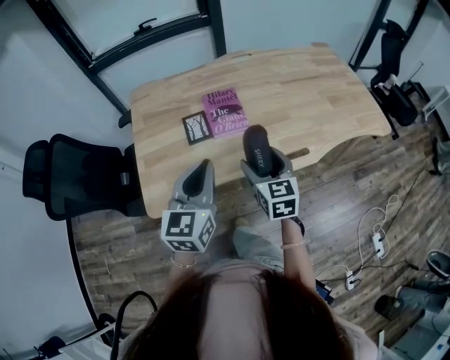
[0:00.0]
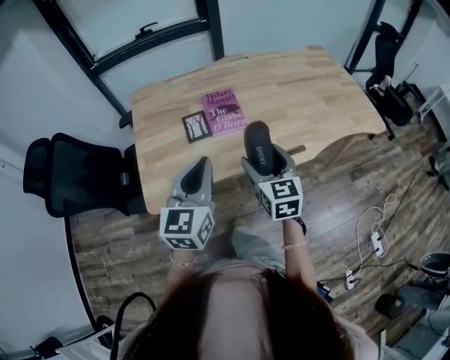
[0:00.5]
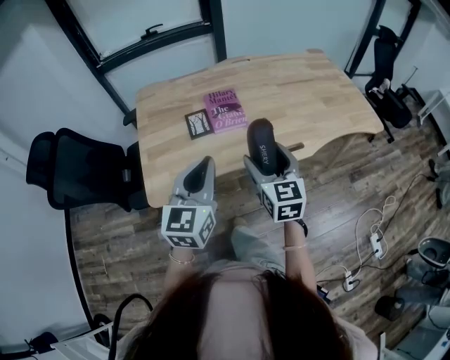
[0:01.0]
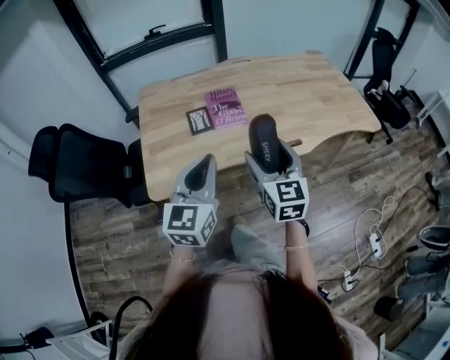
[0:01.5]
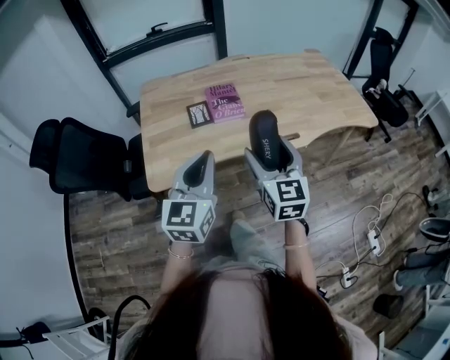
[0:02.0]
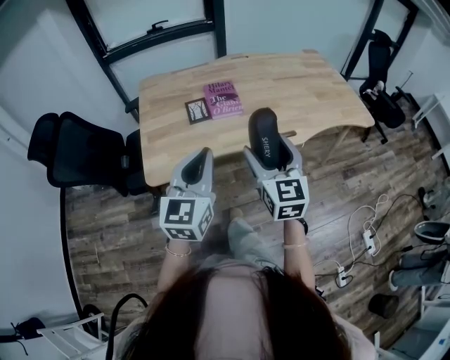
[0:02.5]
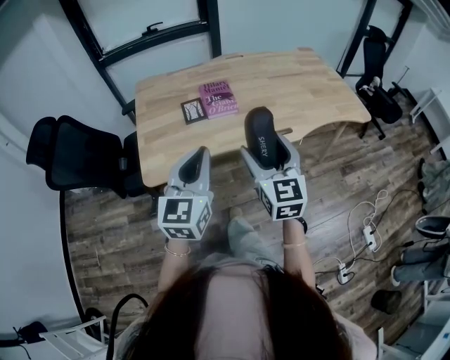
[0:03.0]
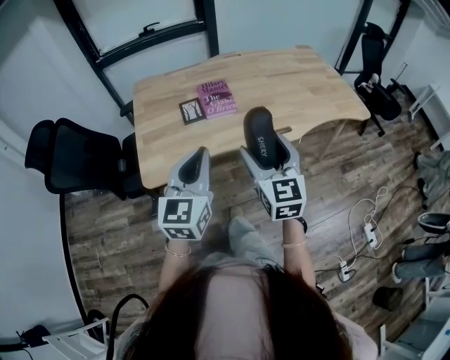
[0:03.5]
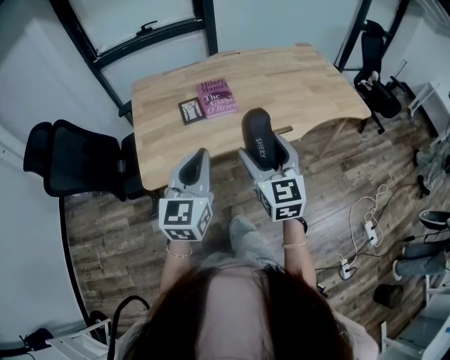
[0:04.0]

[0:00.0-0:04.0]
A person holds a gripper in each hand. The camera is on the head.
0:00.0 to 0:02.0: The right gripper travels backward and upward by roughly 20 cm. Meanwhile the left gripper heads backward, covering approximately 15 cm.
0:02.0 to 0:04.0: The grippers stay close to where they were, moving slightly.

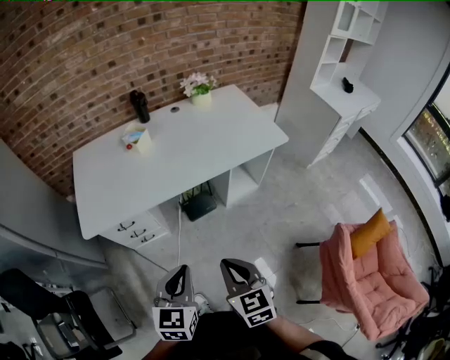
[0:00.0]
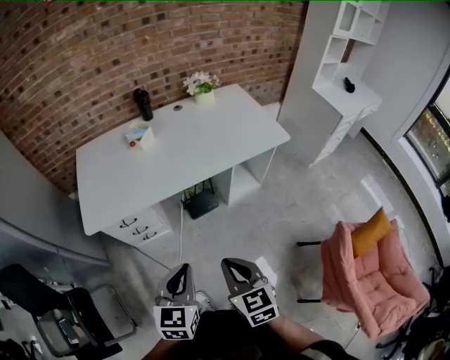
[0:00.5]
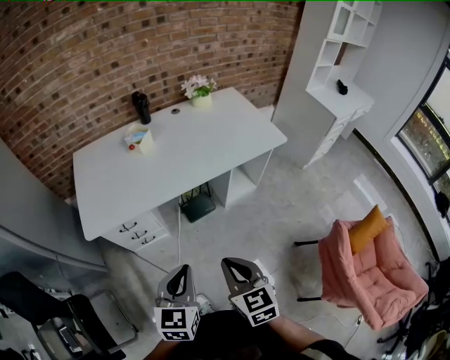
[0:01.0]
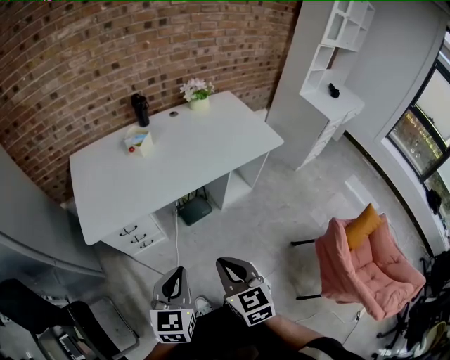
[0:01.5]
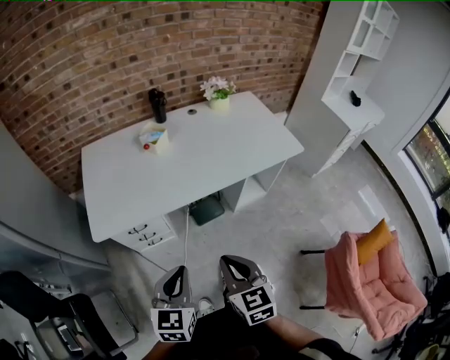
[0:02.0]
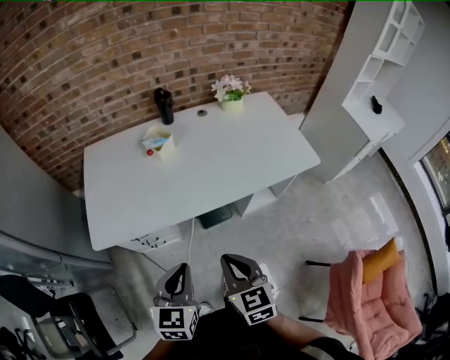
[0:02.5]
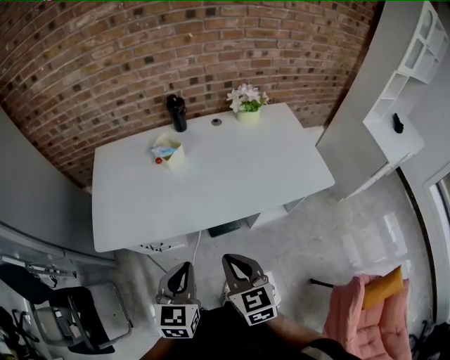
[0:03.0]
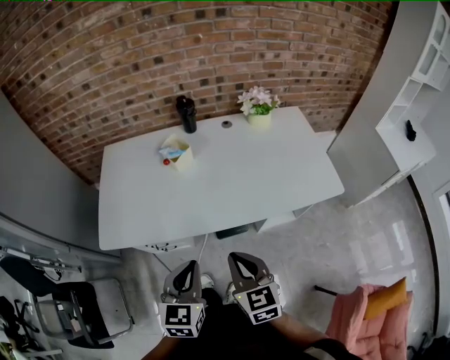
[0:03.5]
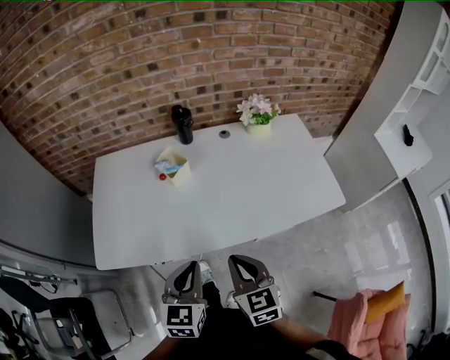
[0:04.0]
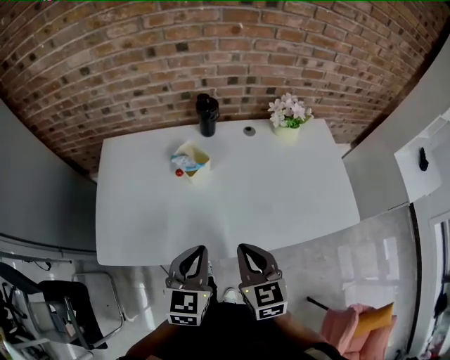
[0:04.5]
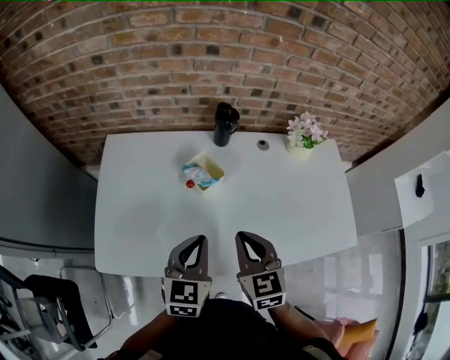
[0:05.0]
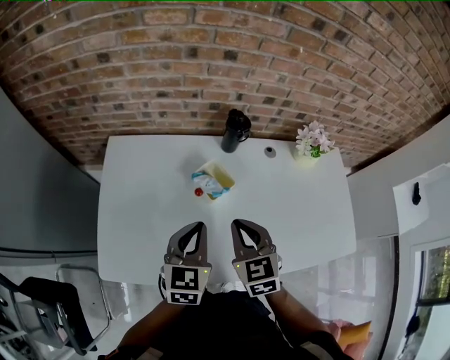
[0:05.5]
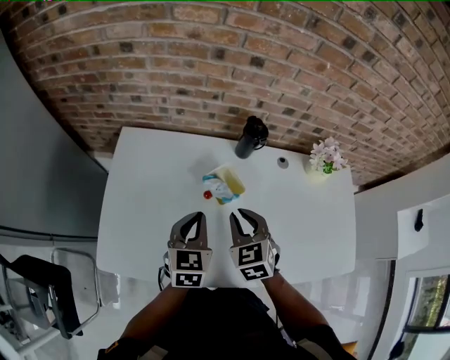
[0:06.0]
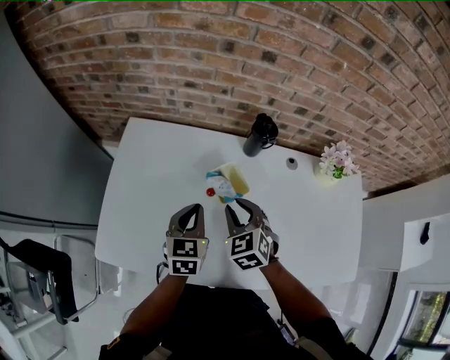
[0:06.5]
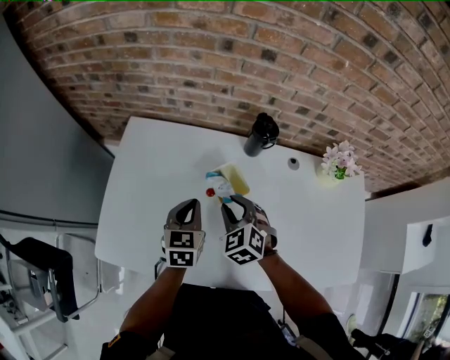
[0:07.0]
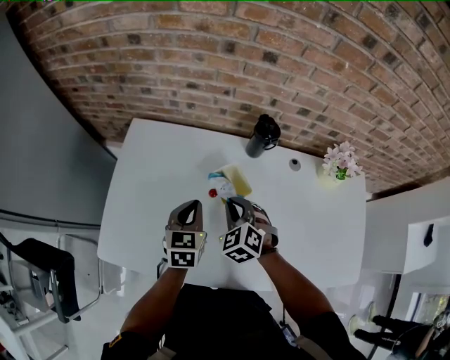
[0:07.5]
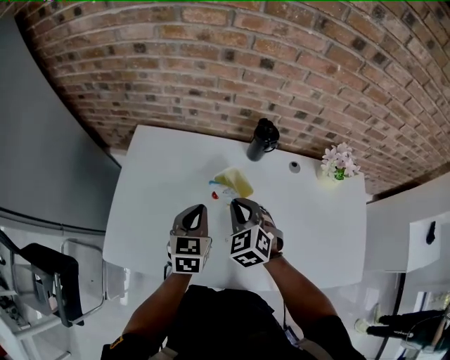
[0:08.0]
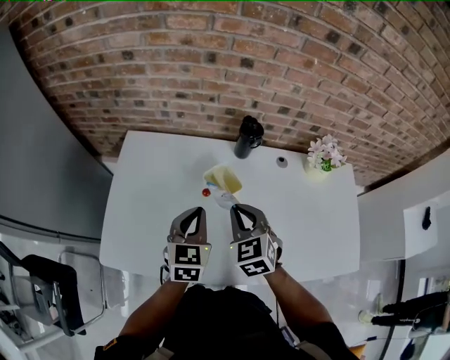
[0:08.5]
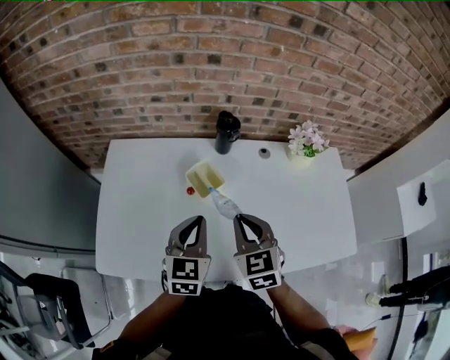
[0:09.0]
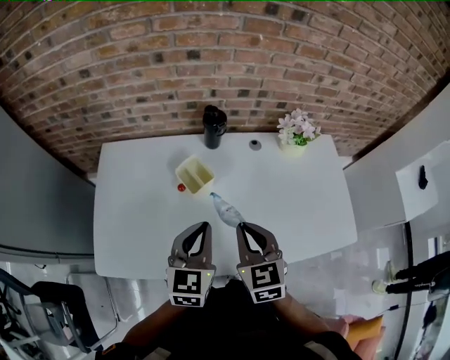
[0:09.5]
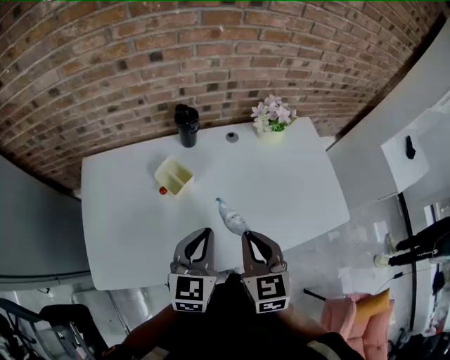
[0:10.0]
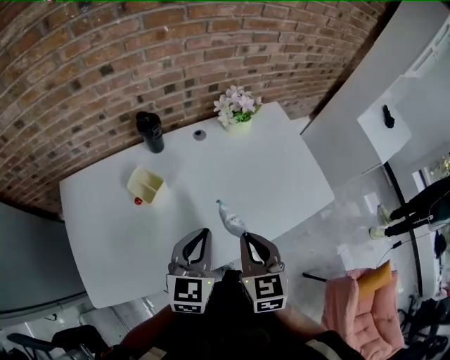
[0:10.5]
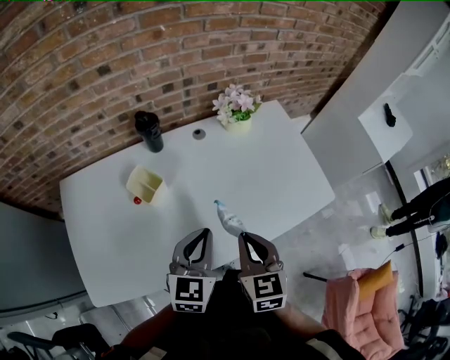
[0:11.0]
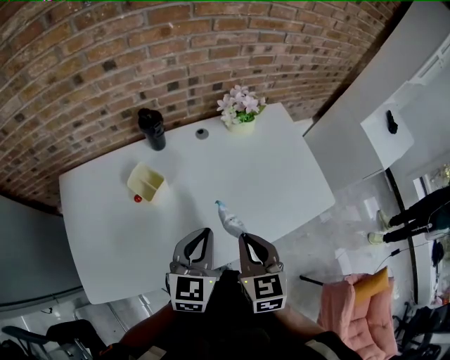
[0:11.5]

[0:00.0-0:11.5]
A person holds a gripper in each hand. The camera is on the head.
0:00.0 to 0:02.0: Both grippers move to the left, about 10 cm.
0:02.0 to 0:04.0: The two grippers go some 25 cm forward.
0:04.0 to 0:06.0: The two grippers go some 30 cm forward and to the left. The right gripper rotates some 30 degrees.
0:06.0 to 0:07.5: The two grippers go about 5 cm downward. The right gripper swivels roughly 20 degrees.
0:07.5 to 0:09.5: The left gripper is displaced upward, to the right and backward by roughly 20 cm, and turns by some 20 degrees. Meanwhile the right gripper shifts about 20 cm upward, backward and to the right, and rotates roughly 40 degrees.
0:09.5 to 0:11.5: The grippers both shift to the right by some 10 cm. The right gripper turns by approximately 20 degrees.

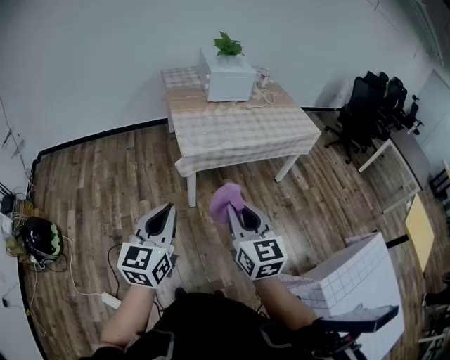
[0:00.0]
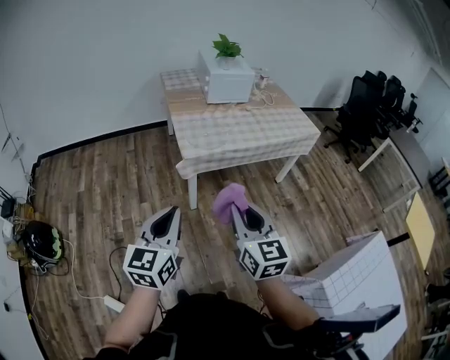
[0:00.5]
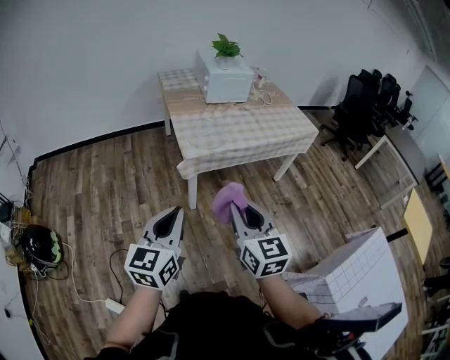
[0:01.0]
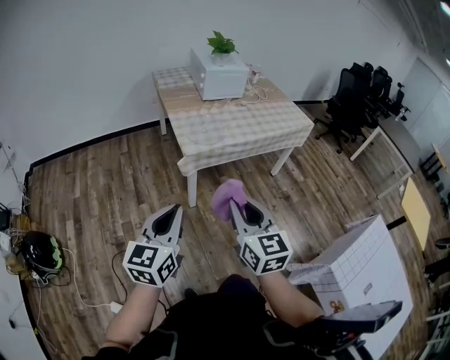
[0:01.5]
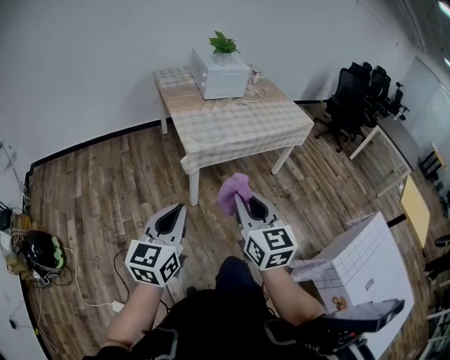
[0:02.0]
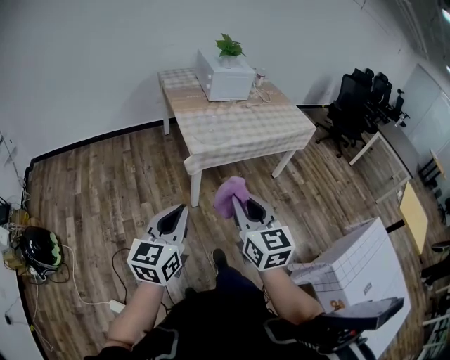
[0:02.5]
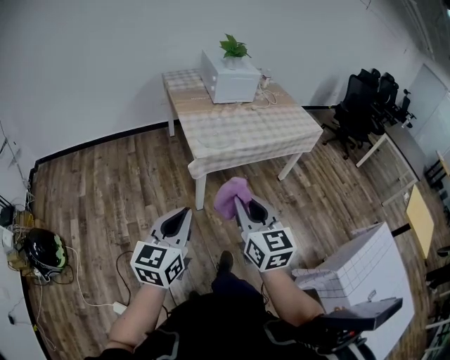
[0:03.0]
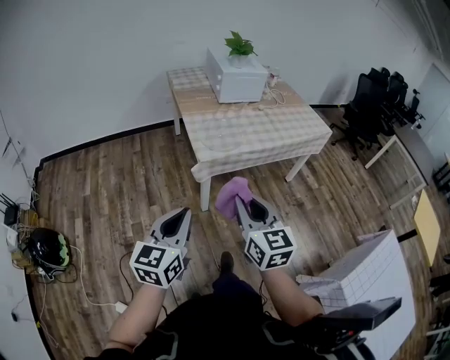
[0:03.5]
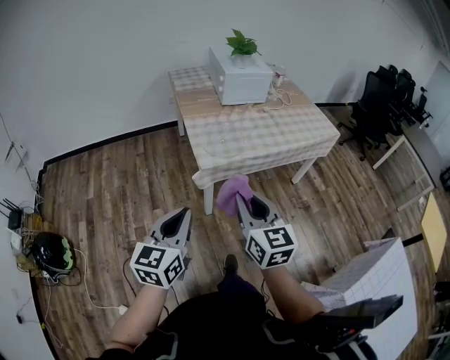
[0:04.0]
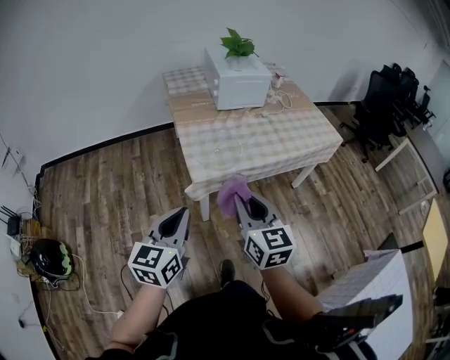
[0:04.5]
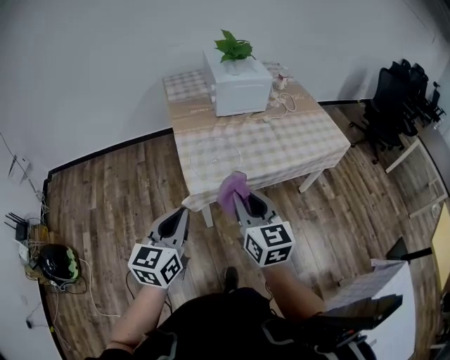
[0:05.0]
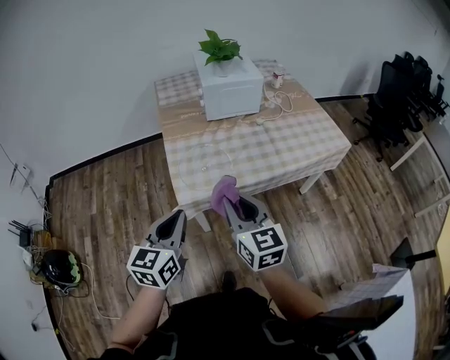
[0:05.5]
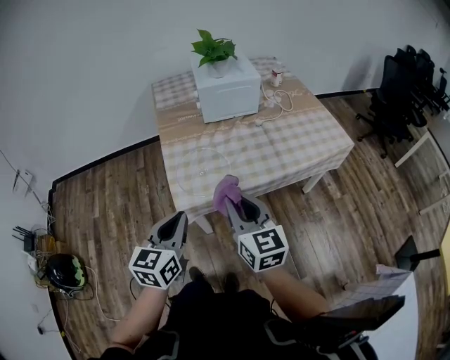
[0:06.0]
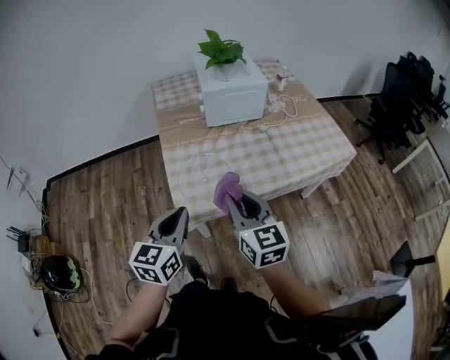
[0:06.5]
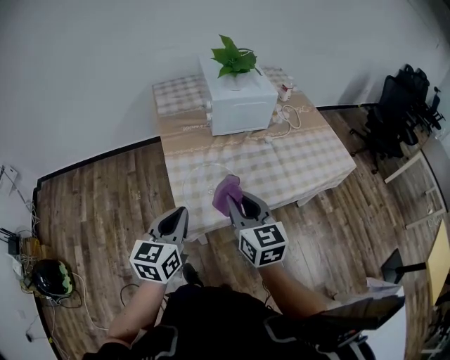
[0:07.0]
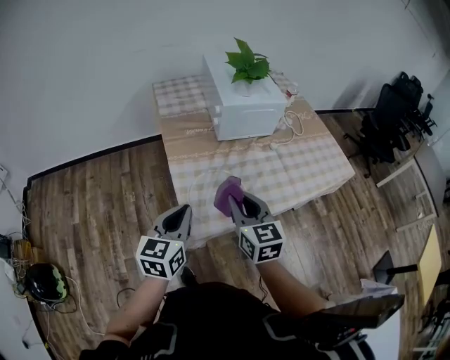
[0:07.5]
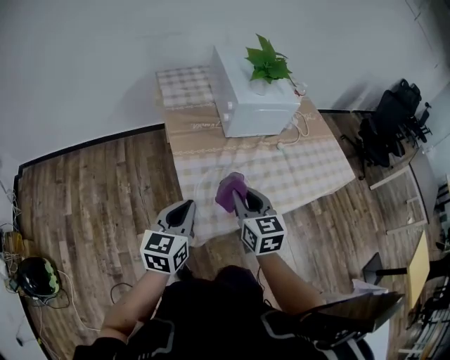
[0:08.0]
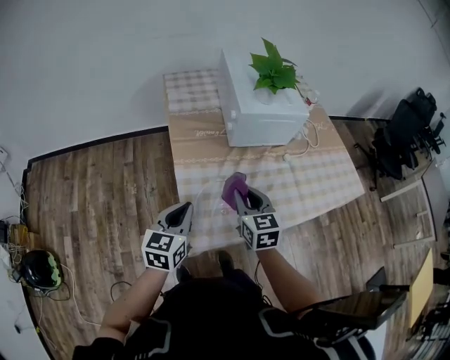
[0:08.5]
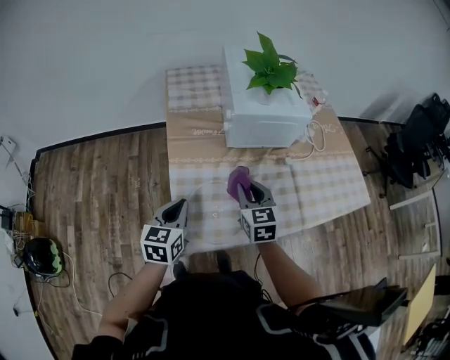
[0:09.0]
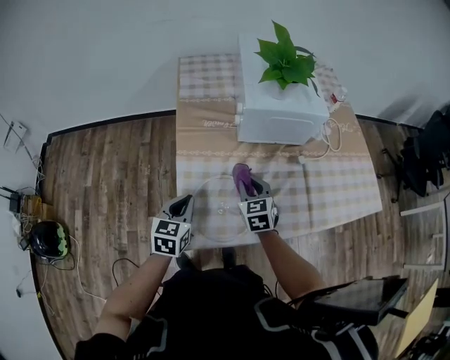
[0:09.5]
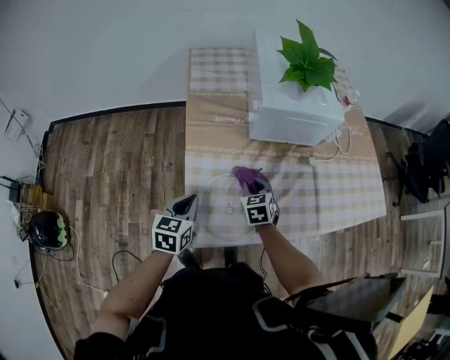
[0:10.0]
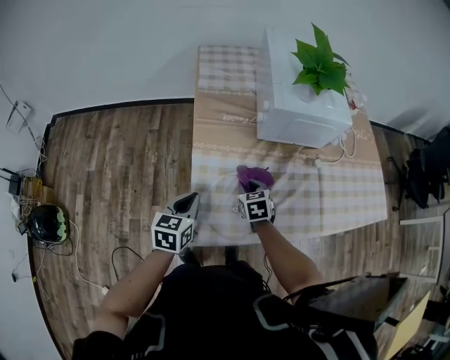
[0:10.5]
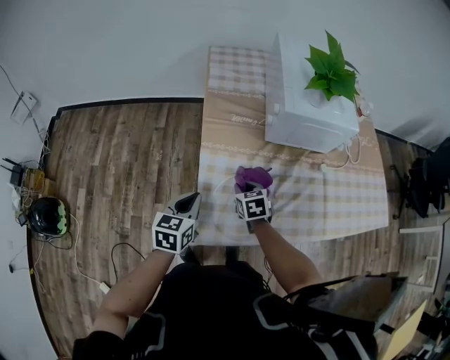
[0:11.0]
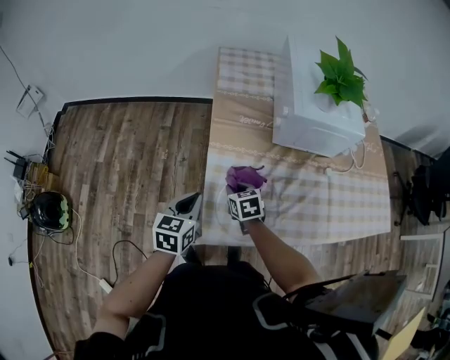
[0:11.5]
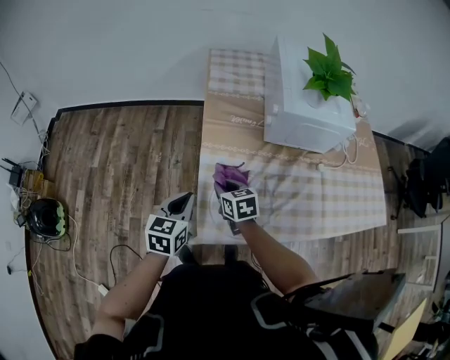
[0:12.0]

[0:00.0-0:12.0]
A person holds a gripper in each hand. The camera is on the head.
0:00.0 to 0:02.0: The right gripper shifts approximately 5 cm to the left. Meanwhile the left gripper shifts by approximately 5 cm.
0:02.0 to 0:04.0: The two grippers go about 15 cm forward.
0:04.0 to 0:06.0: The two grippers go approximately 25 cm forward and to the right.
0:06.0 to 0:08.0: The two grippers go approximately 25 cm forward and to the left.
0:08.0 to 0:10.0: The right gripper goes approximately 25 cm downward and forward, and swivels about 30 degrees. Meanwhile the left gripper goes about 15 cm downward and forward, and rotates roughly 20 degrees.
0:10.0 to 0:12.0: The left gripper moves to the left, roughly 5 cm; the right gripper moves to the left, roughly 15 cm, and rotates roughly 20 degrees.
